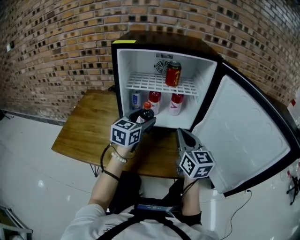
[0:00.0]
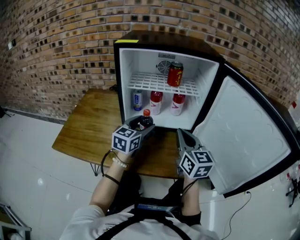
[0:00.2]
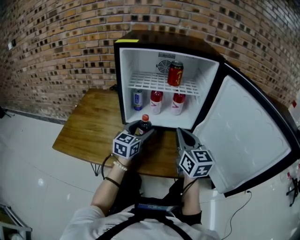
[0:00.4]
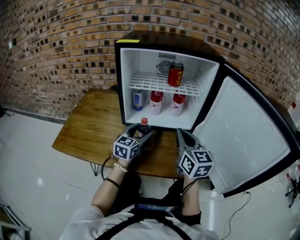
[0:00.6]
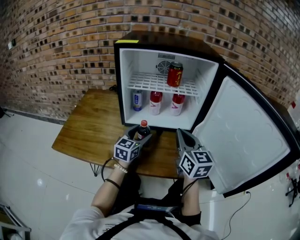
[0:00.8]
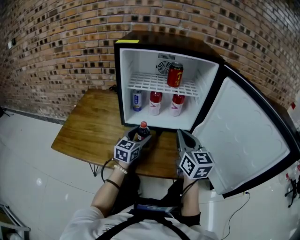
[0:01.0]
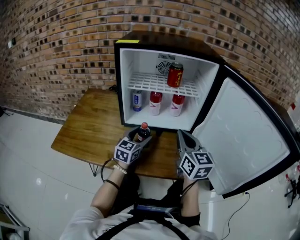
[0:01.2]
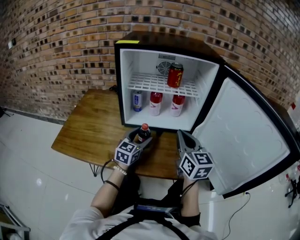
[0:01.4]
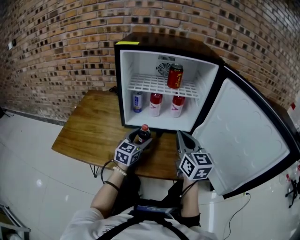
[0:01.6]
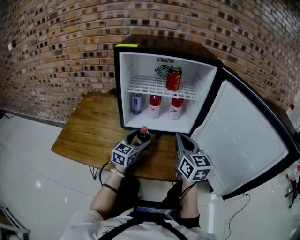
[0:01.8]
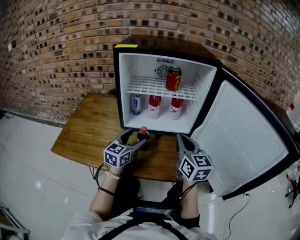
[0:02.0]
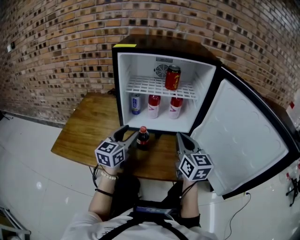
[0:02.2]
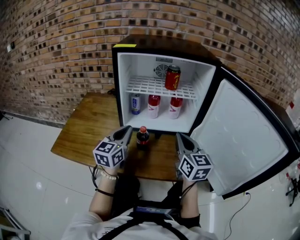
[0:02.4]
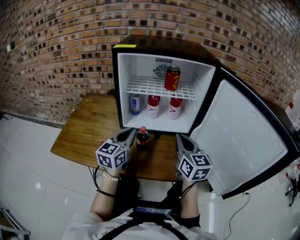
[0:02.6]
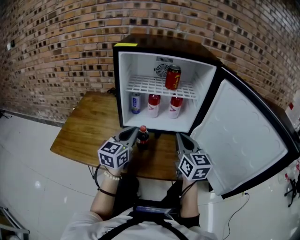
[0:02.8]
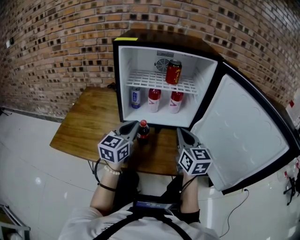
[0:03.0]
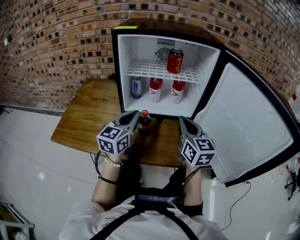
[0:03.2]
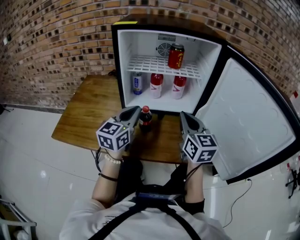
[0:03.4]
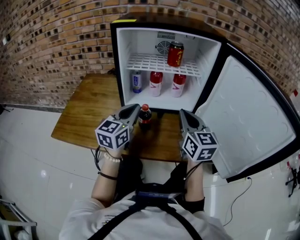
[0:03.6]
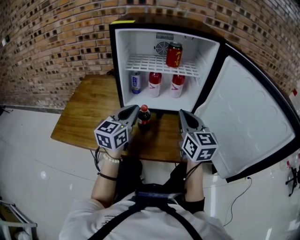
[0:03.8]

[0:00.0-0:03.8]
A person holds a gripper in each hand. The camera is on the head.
0:00.0 to 0:01.2: The left gripper moves downward, some 10 cm.
0:01.2 to 0:02.6: The left gripper goes some 10 cm upward, and closes its fingers.
0:02.6 to 0:03.8: The grippers move only a little.

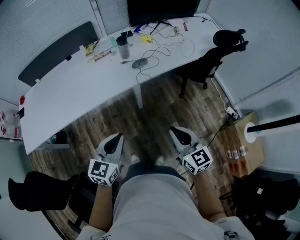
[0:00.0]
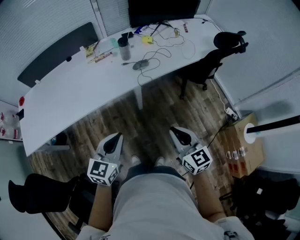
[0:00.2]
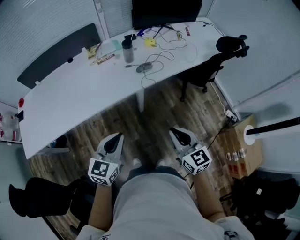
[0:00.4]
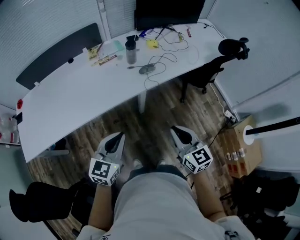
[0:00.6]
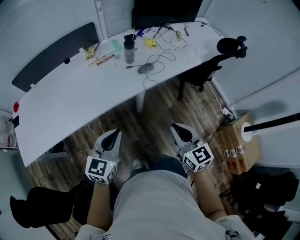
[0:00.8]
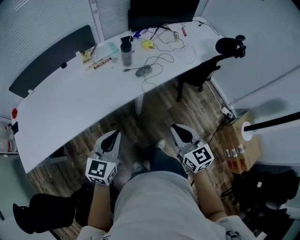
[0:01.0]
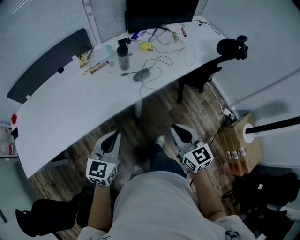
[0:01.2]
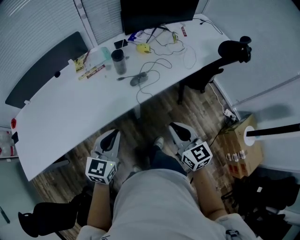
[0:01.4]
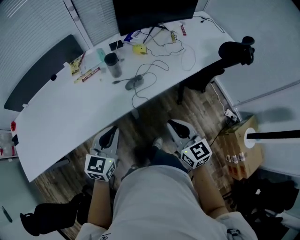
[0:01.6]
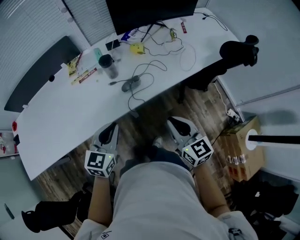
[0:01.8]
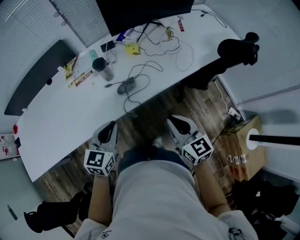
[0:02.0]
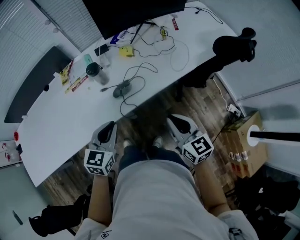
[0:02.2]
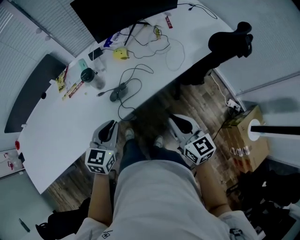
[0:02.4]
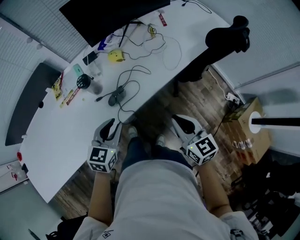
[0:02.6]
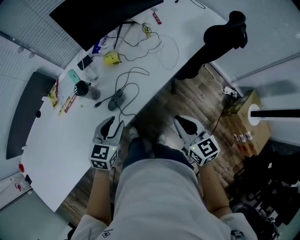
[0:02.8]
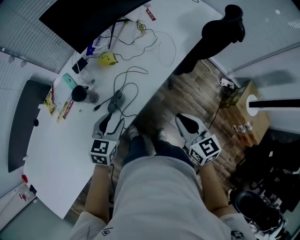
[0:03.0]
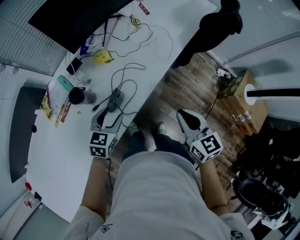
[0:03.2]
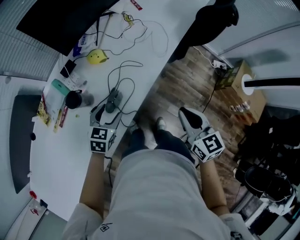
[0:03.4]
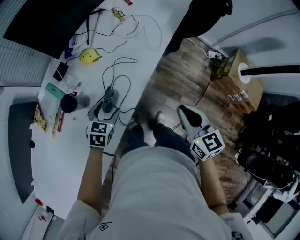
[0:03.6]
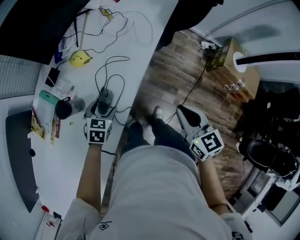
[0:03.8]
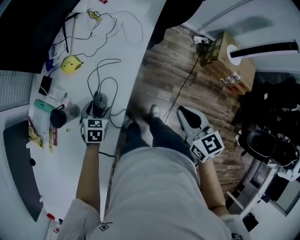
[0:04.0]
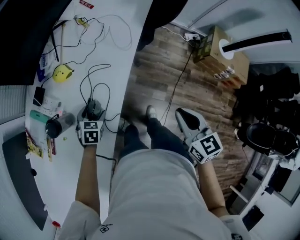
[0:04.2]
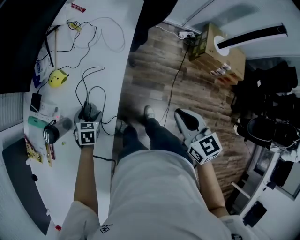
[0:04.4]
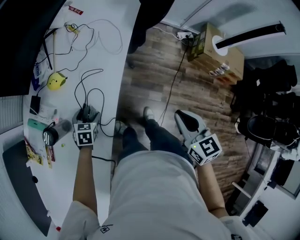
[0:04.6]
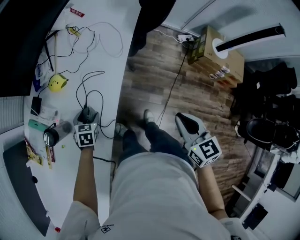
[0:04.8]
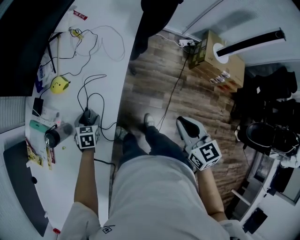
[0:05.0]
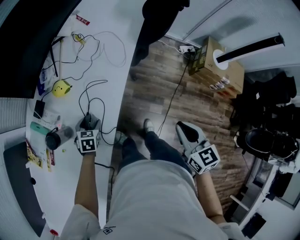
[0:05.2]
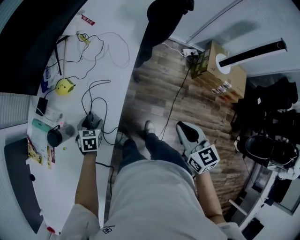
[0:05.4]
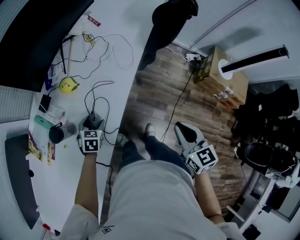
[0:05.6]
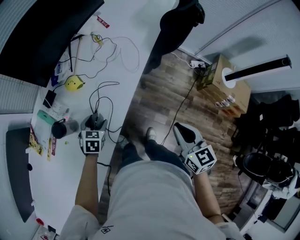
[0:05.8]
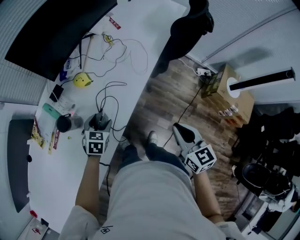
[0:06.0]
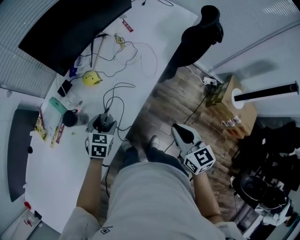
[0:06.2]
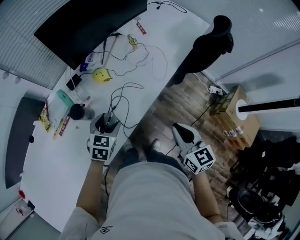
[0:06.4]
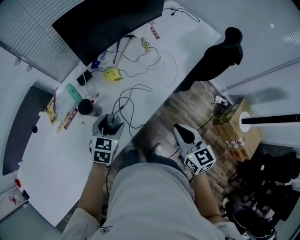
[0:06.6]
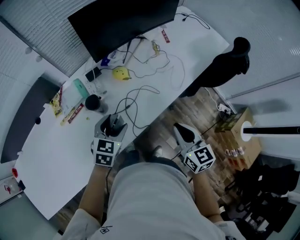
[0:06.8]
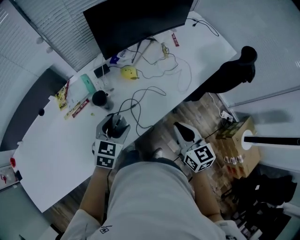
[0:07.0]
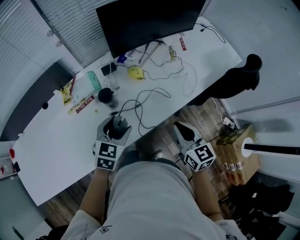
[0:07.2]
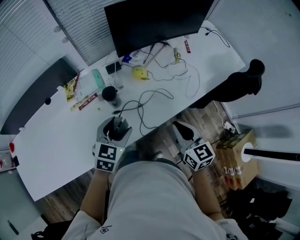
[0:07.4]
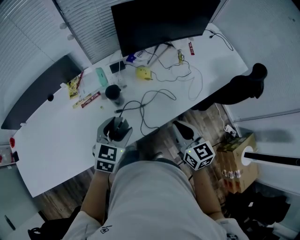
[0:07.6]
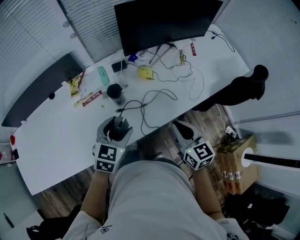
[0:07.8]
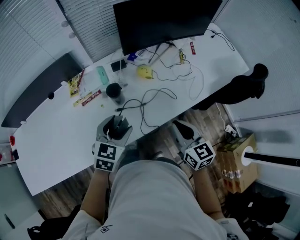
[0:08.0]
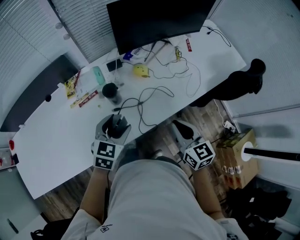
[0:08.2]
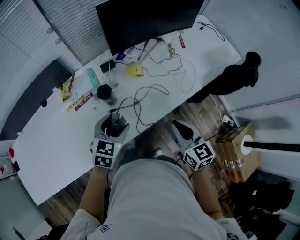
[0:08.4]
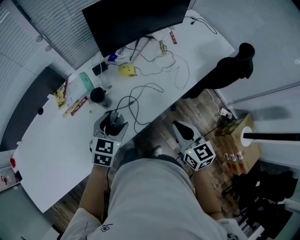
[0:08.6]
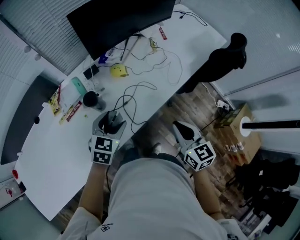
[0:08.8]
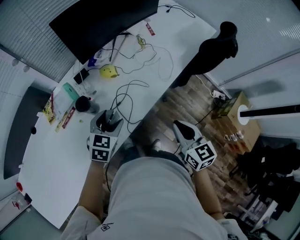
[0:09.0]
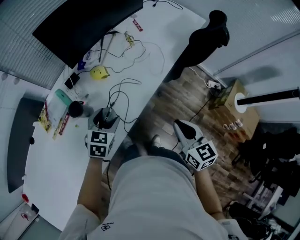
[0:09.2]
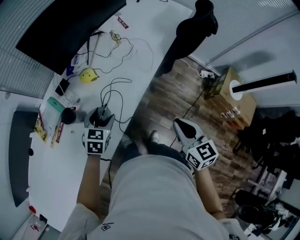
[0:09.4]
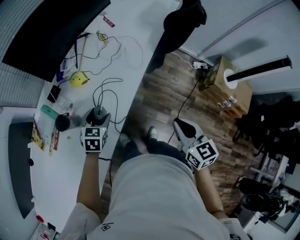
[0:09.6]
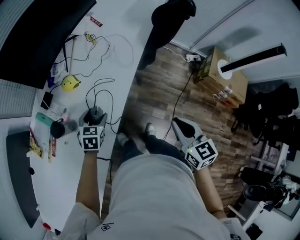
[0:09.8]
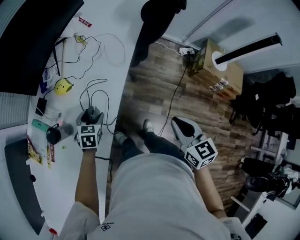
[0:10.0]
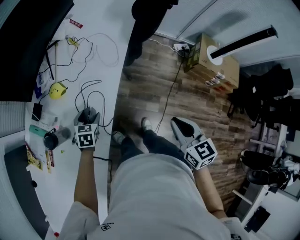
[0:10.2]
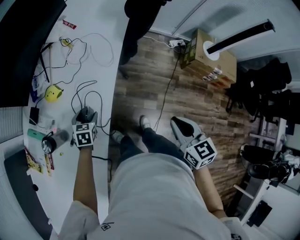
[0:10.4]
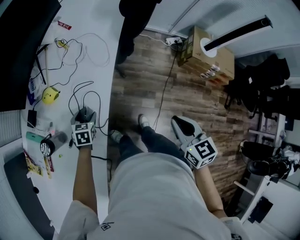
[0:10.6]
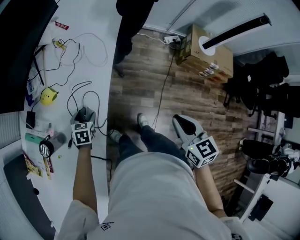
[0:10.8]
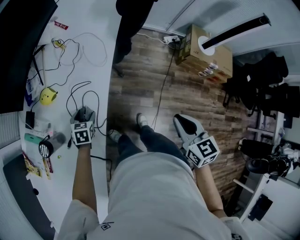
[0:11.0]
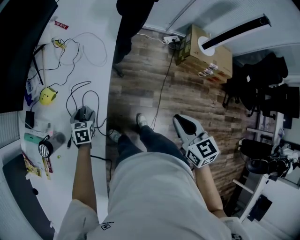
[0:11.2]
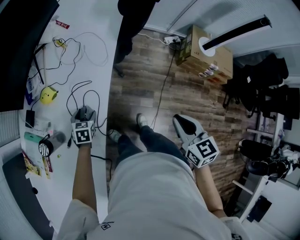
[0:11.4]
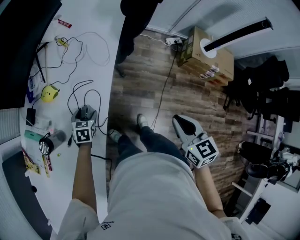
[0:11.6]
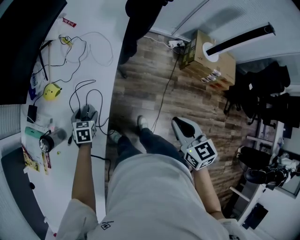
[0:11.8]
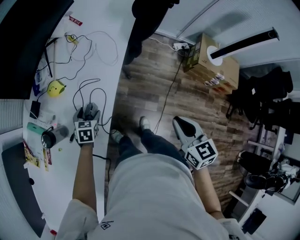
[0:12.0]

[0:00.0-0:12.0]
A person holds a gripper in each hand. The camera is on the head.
0:00.0 to 0:01.6: Both grippers move forward, approximately 25 cm.
0:01.6 to 0:03.0: The left gripper moves forward and downward, some 25 cm, swivels roughly 30 degrees, and opens. The right gripper is displaced forward and to the right by about 15 cm, and swivels roughly 20 degrees.
0:03.0 to 0:04.4: The right gripper changes place by approximately 10 cm, and turns by some 30 degrees. Meanwhile the left gripper heads downward, covering approximately 20 cm, rotates roughly 30 degrees, and opens its fingers.
0:04.4 to 0:06.0: The left gripper is displaced upward by some 10 cm. Meanwhile the right gripper changes place by approximately 5 cm.
0:06.0 to 0:07.6: The left gripper is displaced upward by about 15 cm, and changes its angle by roughly 30 degrees, while the right gripper ends up approximately 15 cm from where it was, and swivels about 30 degrees.
0:07.6 to 0:09.0: The left gripper travels to the right and downward by roughly 10 cm, while the right gripper shifts some 10 cm to the right and backward, and changes its angle by some 20 degrees.
0:09.0 to 0:10.4: The right gripper ends up about 15 cm from where it was, and rotates roughly 30 degrees; the left gripper goes approximately 20 cm downward, and swivels roughly 20 degrees.
0:10.4 to 0:12.0: The grippers stay close to where they were, moving slightly.

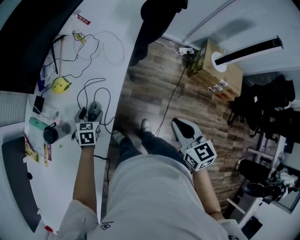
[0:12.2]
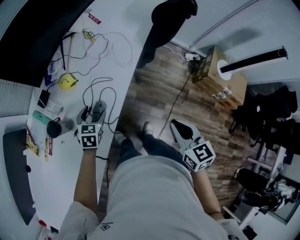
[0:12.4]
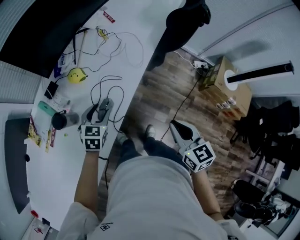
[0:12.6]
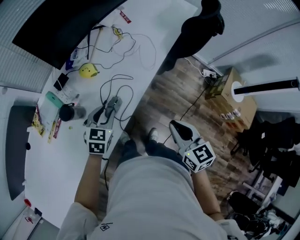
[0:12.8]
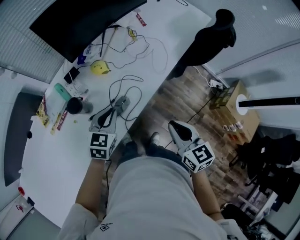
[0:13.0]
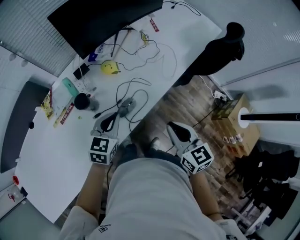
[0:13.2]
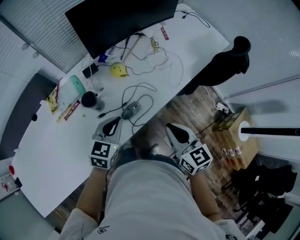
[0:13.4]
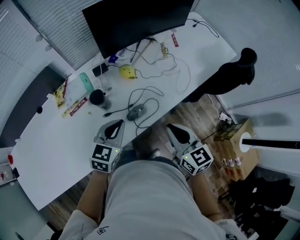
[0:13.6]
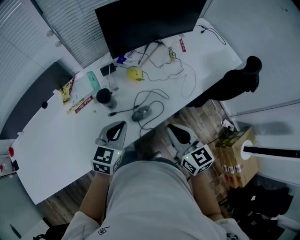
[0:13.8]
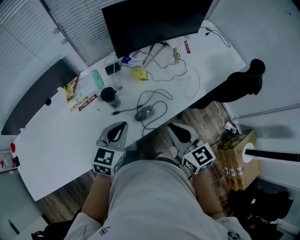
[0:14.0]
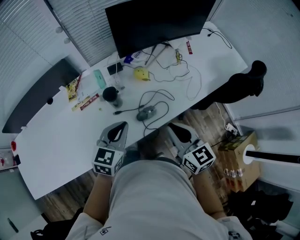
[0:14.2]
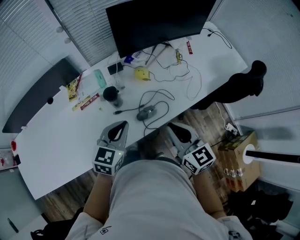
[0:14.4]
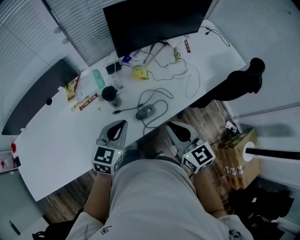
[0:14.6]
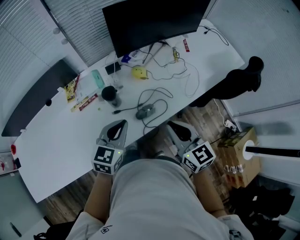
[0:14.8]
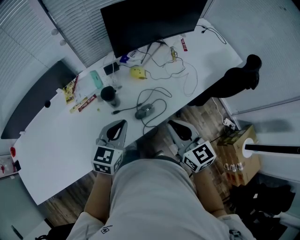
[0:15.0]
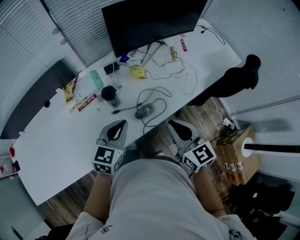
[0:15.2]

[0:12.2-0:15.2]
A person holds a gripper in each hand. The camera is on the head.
0:12.2 to 0:13.8: The right gripper changes place by about 20 cm, and rotates roughly 50 degrees. Meanwhile the left gripper goes approximately 20 cm upward, changes its angle by some 30 degrees, and closes its fingers.
0:13.8 to 0:15.2: There are only small adjustments of the grippers.

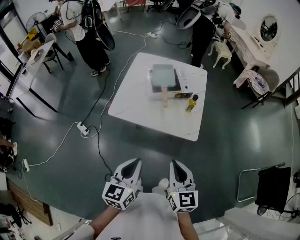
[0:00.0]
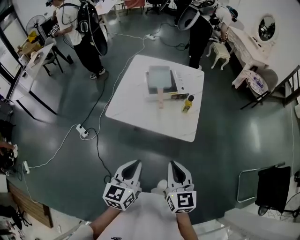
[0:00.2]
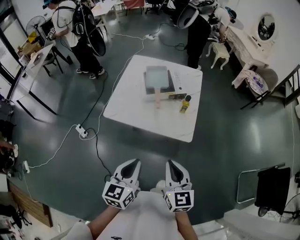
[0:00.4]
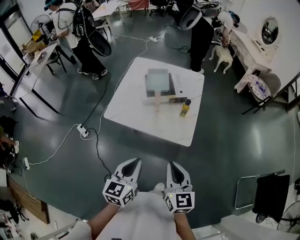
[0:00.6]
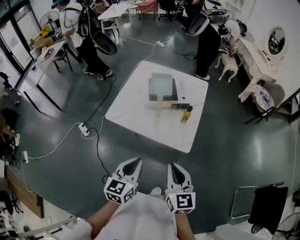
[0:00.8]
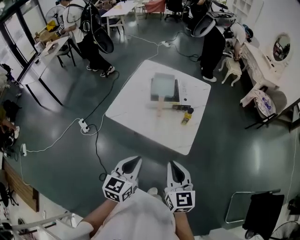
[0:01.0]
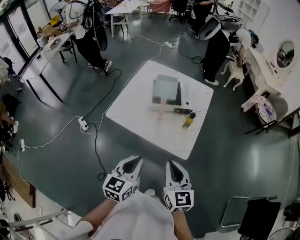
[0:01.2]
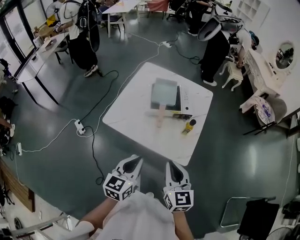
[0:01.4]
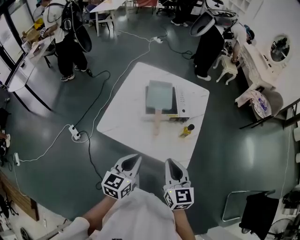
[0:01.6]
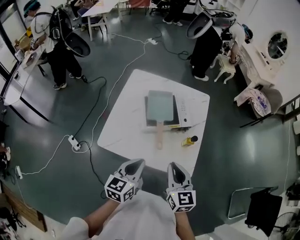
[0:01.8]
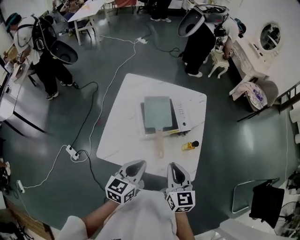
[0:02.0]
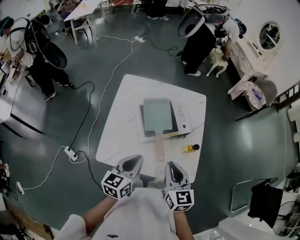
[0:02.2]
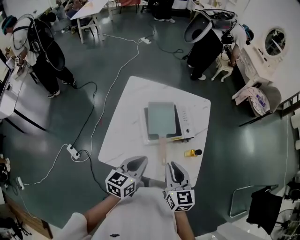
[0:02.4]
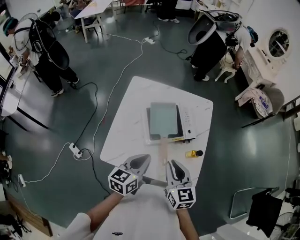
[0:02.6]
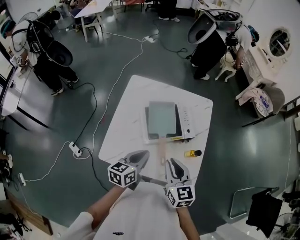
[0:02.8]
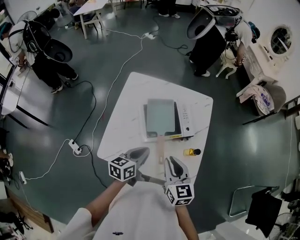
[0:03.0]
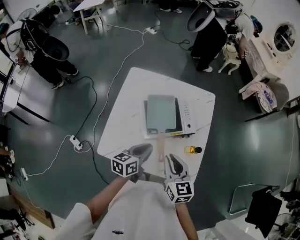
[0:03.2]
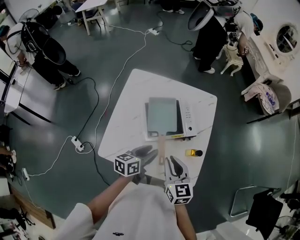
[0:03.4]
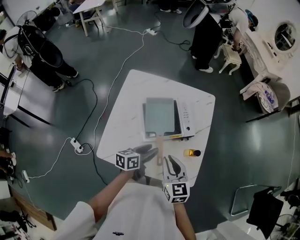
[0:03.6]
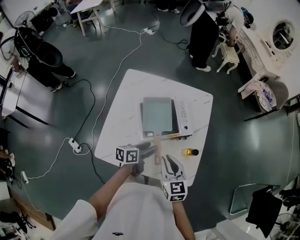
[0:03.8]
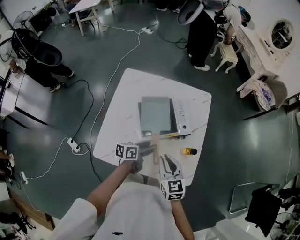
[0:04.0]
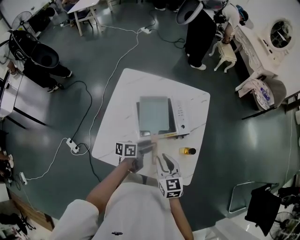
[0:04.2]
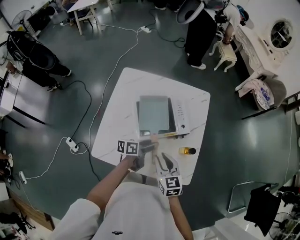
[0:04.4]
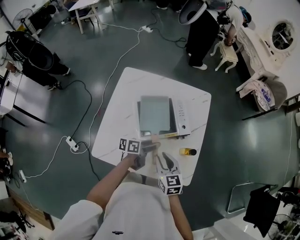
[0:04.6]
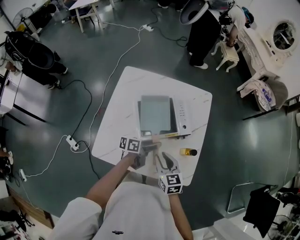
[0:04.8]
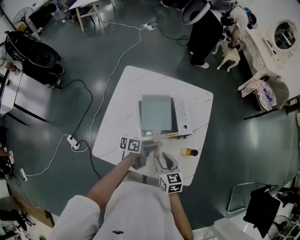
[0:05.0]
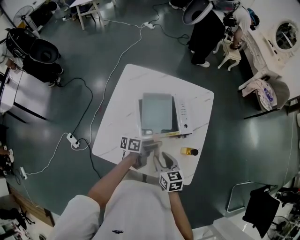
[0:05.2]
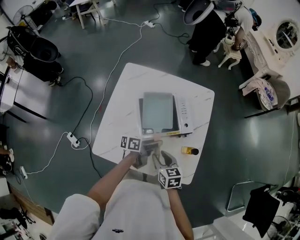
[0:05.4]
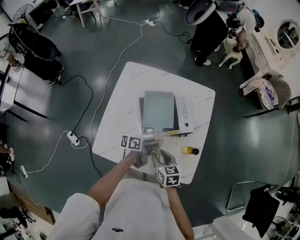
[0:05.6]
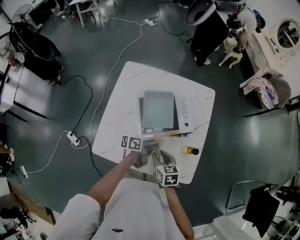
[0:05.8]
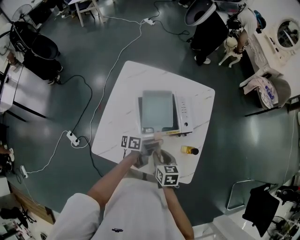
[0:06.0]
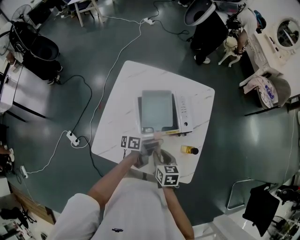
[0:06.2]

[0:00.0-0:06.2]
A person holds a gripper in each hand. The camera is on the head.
0:00.0 to 0:01.6: The two grippers go approximately 20 cm forward.
0:01.6 to 0:03.2: The grippers both shift forward by approximately 20 cm. The left gripper rotates about 30 degrees.
0:03.2 to 0:04.6: The right gripper is displaced downward by roughly 10 cm. The left gripper is displaced downward, forward and to the right by some 15 cm, swivels about 30 degrees, and opens up.
0:04.6 to 0:06.2: The right gripper shifts roughly 5 cm downward, while the left gripper closes its fingers.
